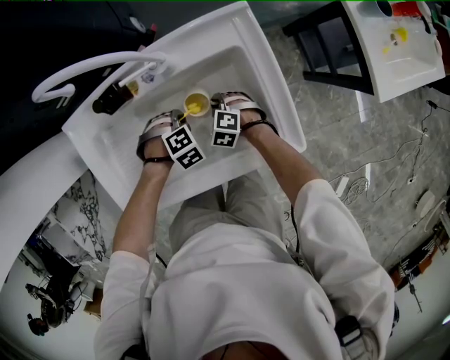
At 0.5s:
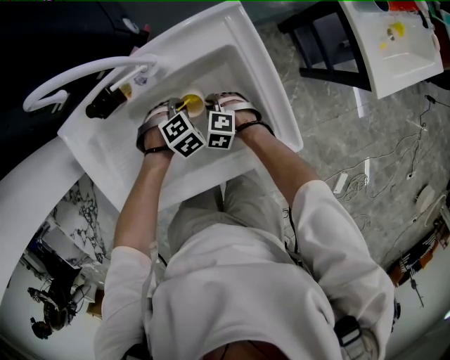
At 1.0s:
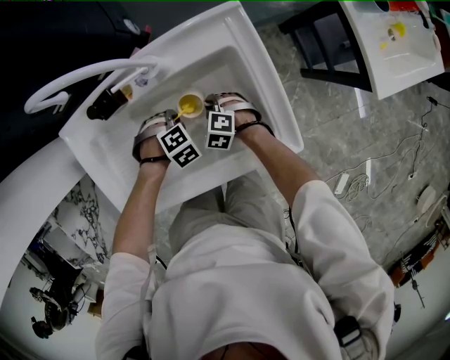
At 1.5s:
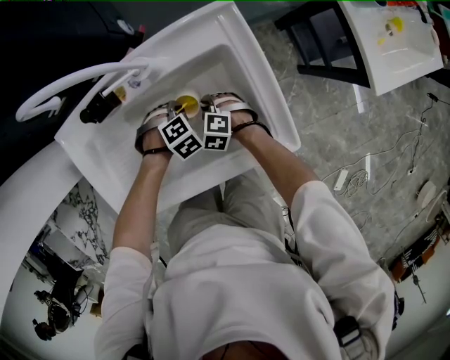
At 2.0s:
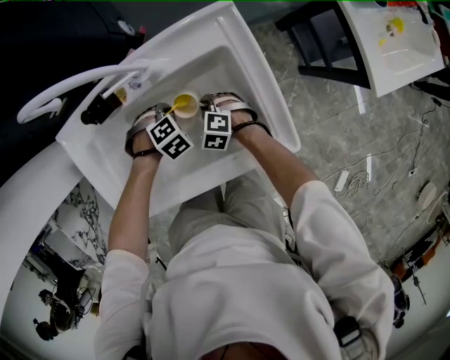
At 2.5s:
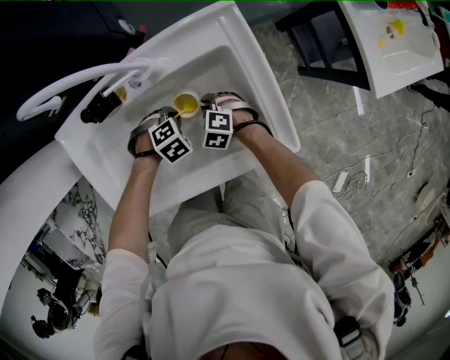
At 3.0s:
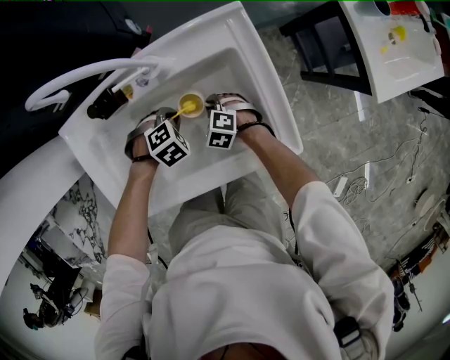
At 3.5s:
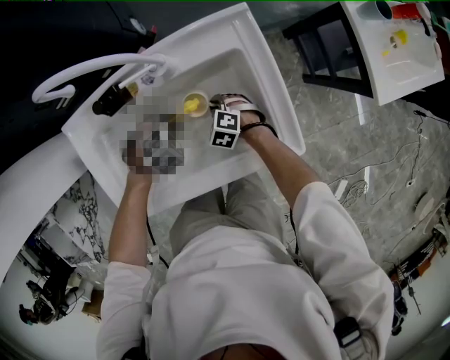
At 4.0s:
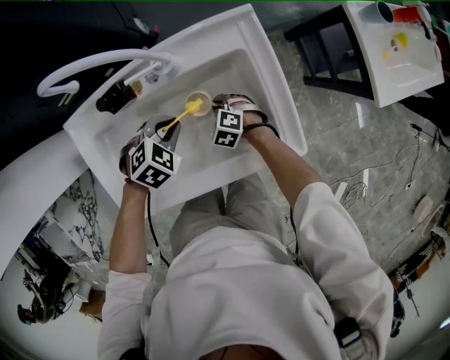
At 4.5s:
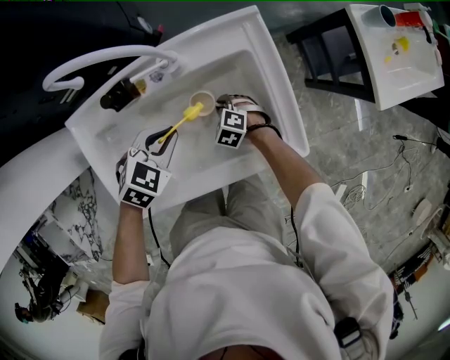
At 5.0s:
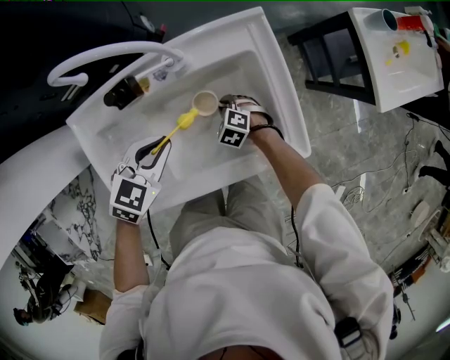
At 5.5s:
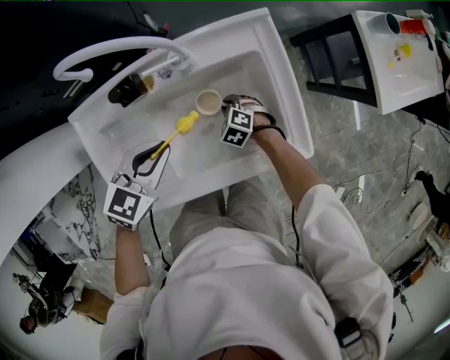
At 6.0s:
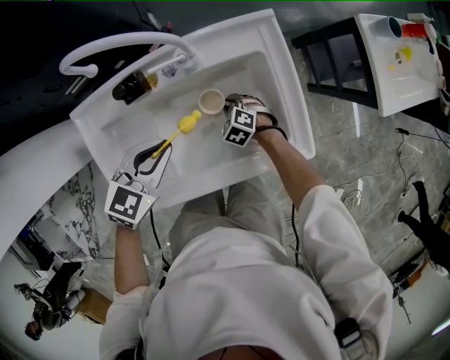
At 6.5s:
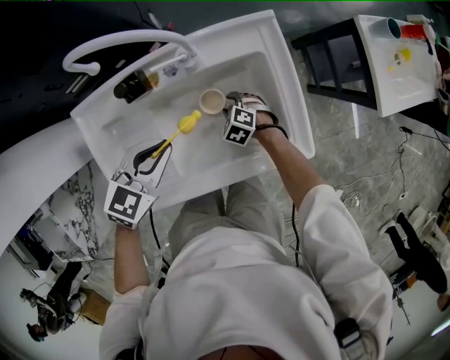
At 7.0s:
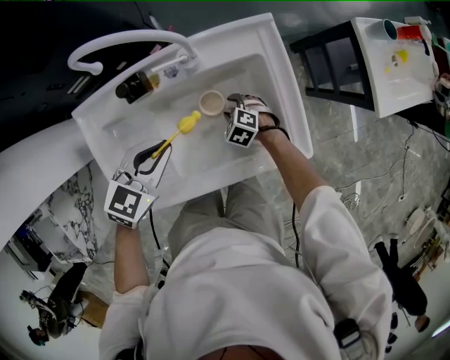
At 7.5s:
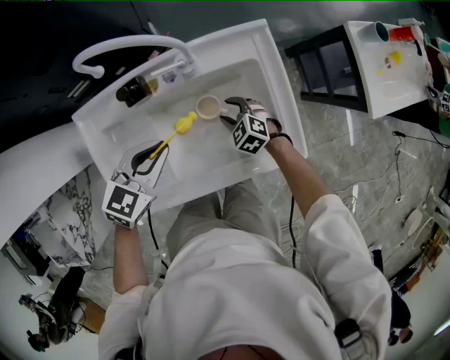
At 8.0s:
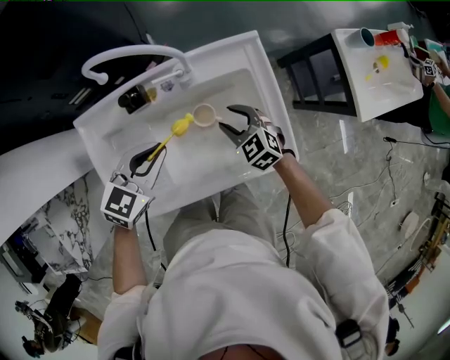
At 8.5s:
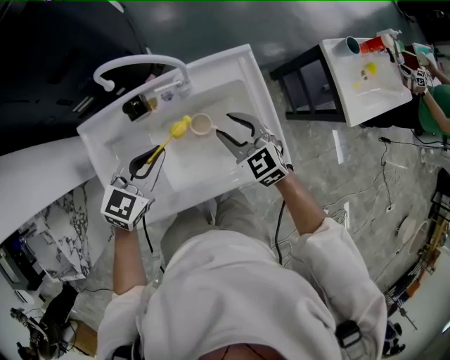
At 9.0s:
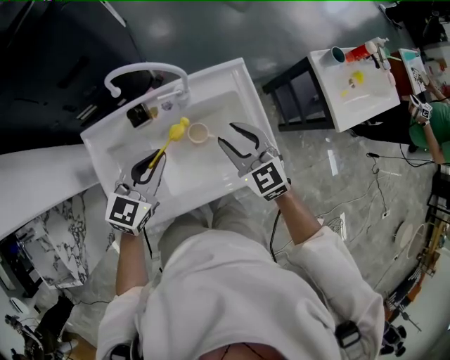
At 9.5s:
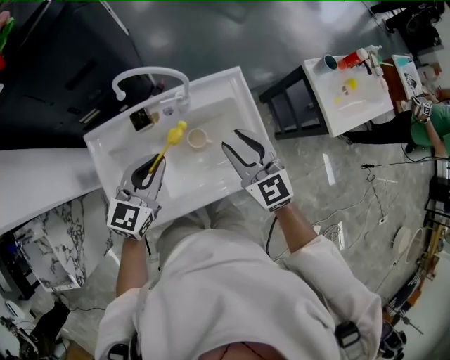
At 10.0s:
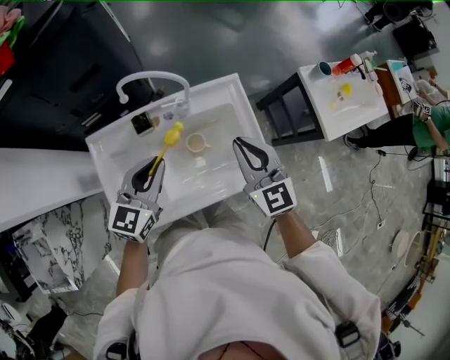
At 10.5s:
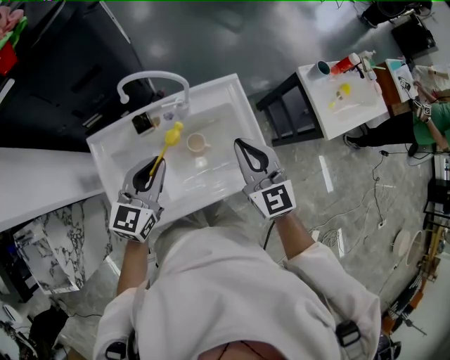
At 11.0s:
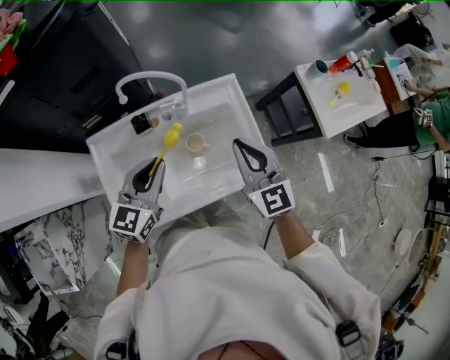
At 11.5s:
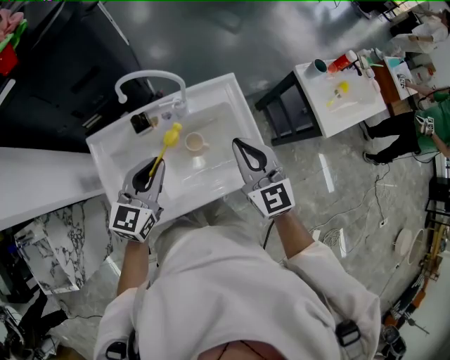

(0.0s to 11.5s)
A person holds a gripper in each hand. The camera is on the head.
0.0s - 2.0s: The grippers make only small movements.
2.0s - 4.0s: The left gripper heads upward, covering approximately 10 cm, and changes its angle by some 30 degrees.
4.0s - 6.0s: The left gripper moves upward and to the left, some 10 cm, and swivels approximately 30 degrees.
6.0s - 7.5s: The right gripper is displaced upward by approximately 10 cm, and opens.
7.5s - 9.5s: The left gripper travels upward by approximately 15 cm, and changes its angle by approximately 20 degrees, while the right gripper travels upward by approximately 35 cm, and tilts its fingers some 40 degrees upward.
9.5s - 11.5s: The right gripper travels upward by approximately 5 cm, and closes its fingers.

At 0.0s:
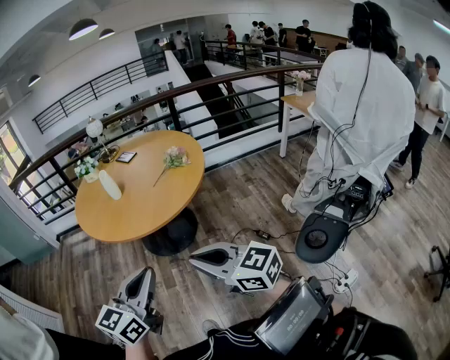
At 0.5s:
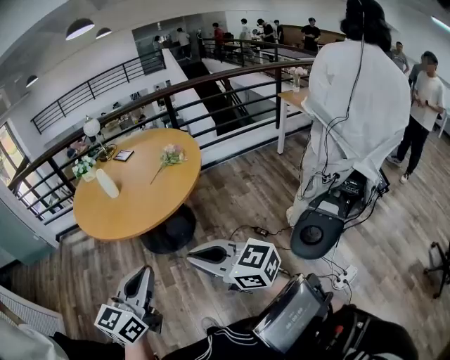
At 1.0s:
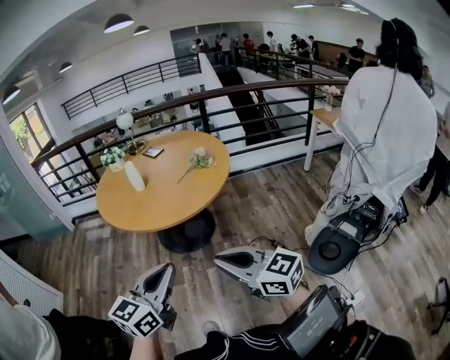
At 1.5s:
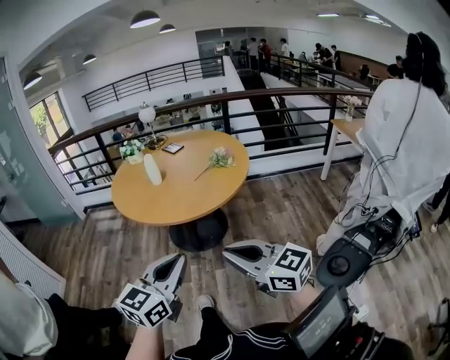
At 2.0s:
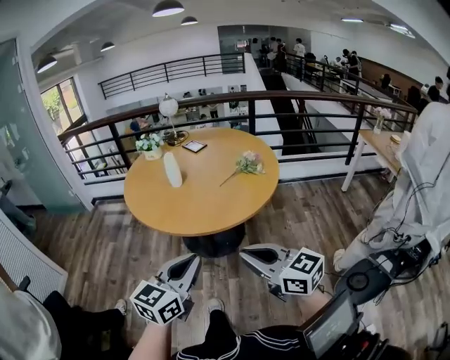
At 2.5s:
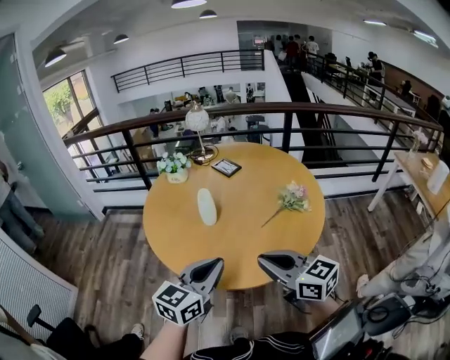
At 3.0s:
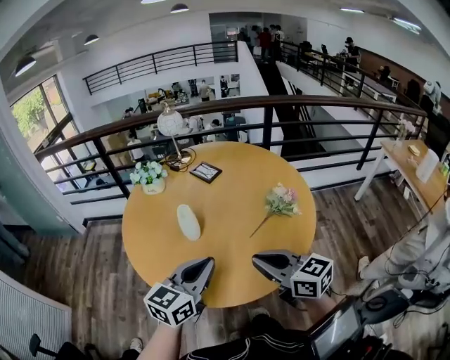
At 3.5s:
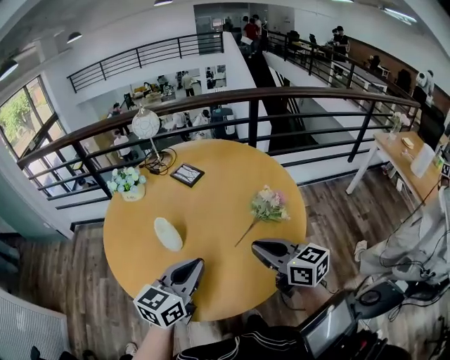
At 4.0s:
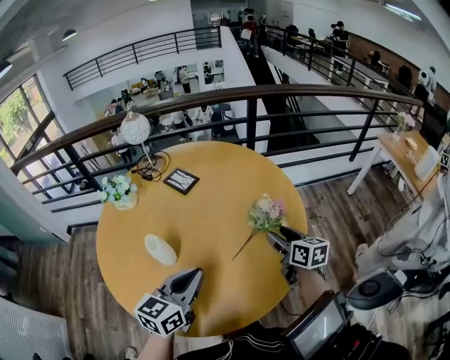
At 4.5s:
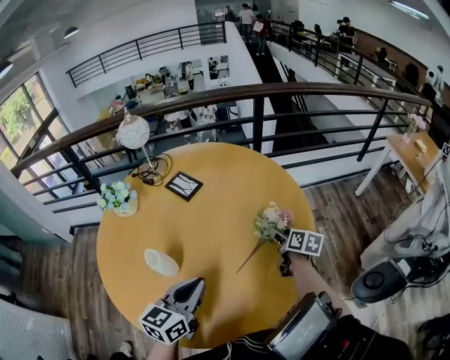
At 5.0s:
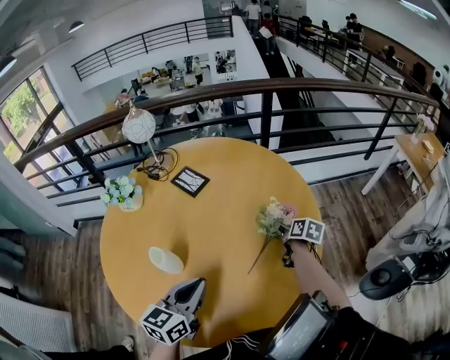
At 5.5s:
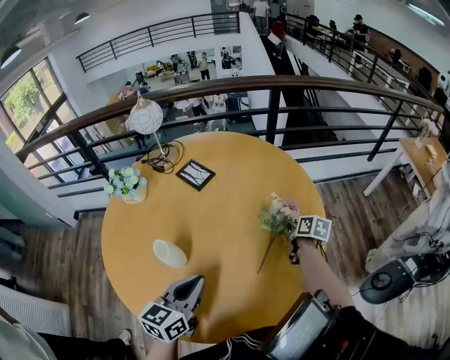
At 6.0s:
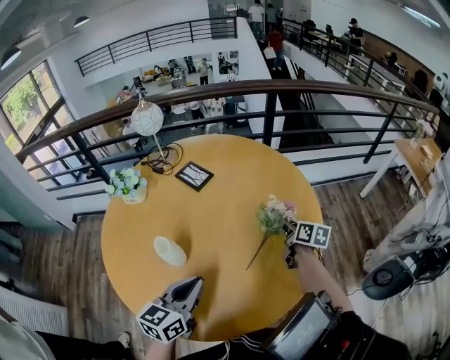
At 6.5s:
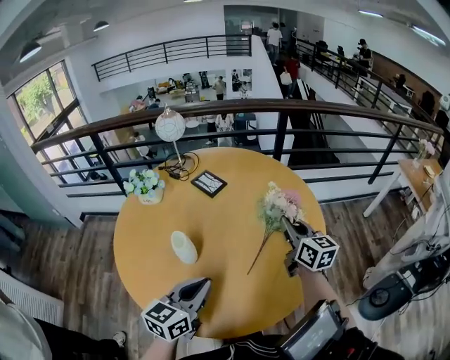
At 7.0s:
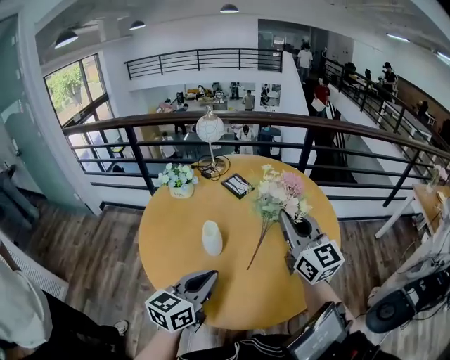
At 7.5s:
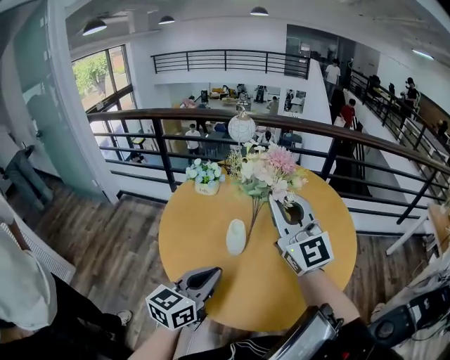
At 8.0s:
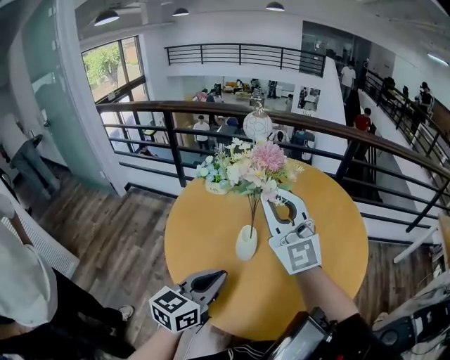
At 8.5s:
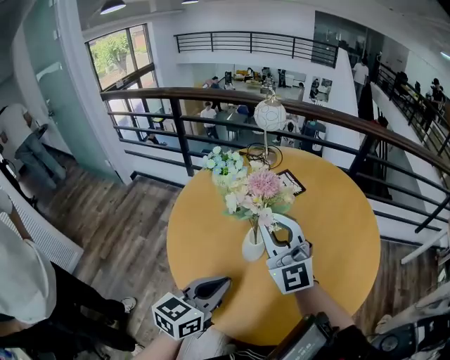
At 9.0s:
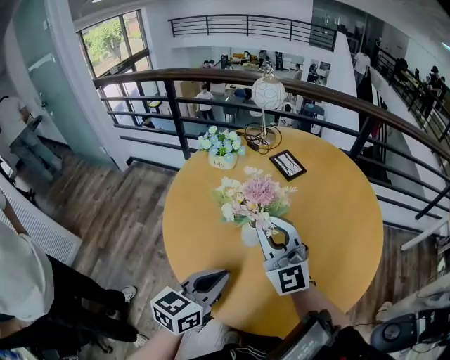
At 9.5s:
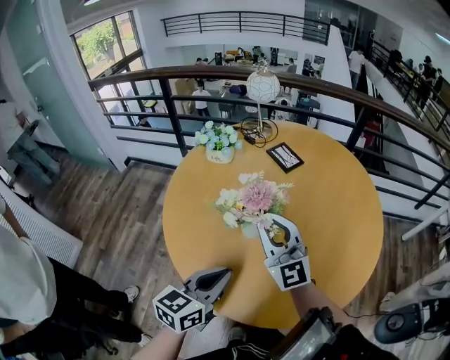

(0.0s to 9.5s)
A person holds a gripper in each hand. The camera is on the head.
0.0s - 2.0s: The two grippers go approximately 10 cm forward.
2.0s - 4.0s: Both grippers move forward, roughly 40 cm. The right gripper rotates roughly 50 degrees, and opens.
4.0s - 5.5s: The right gripper heads downward and forward, covering some 15 cm, swivels roughly 30 degrees, and closes its fingers.
5.5s - 7.5s: The right gripper moves upward and to the left, roughly 50 cm, and points its fingers approximately 60 degrees further upward; the left gripper travels to the left, upward and backward by approximately 15 cm.
7.5s - 9.5s: The left gripper moves downward, about 5 cm. Meanwhile the right gripper heads downward and to the left, covering approximately 15 cm.

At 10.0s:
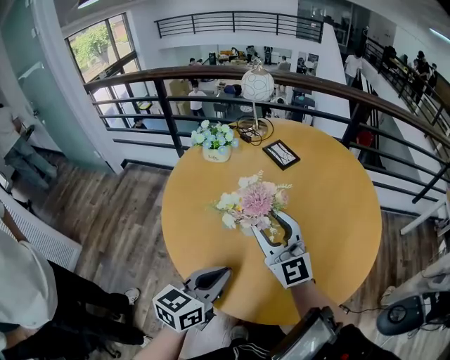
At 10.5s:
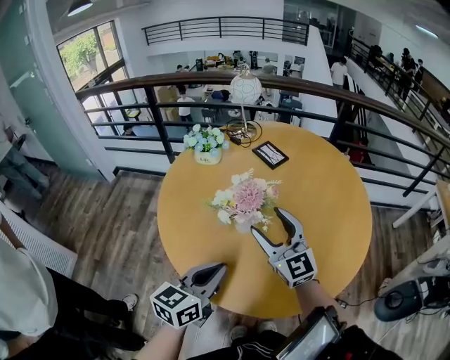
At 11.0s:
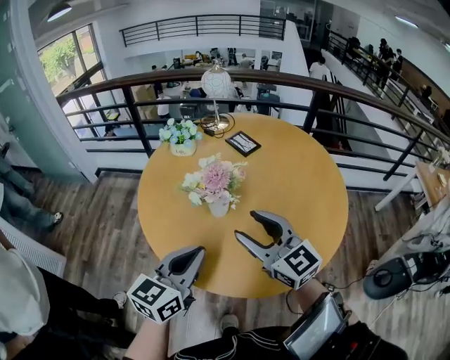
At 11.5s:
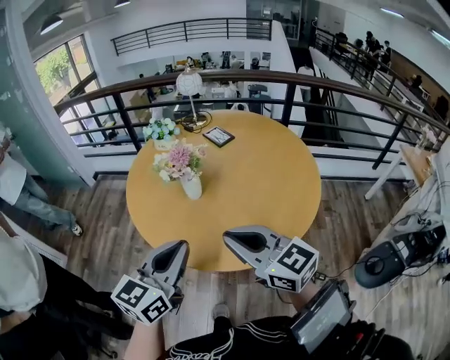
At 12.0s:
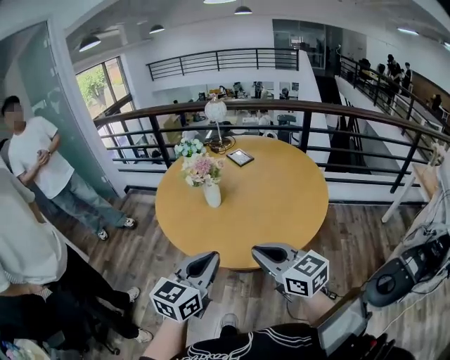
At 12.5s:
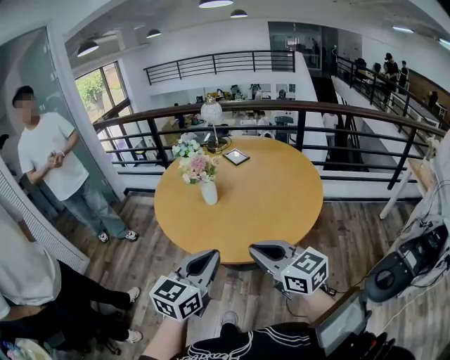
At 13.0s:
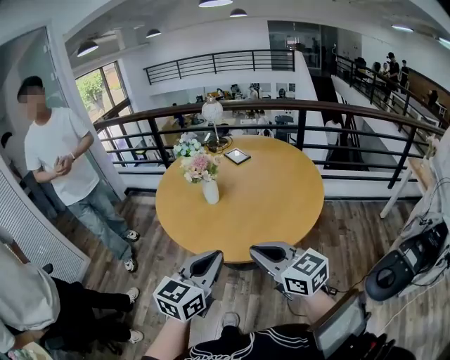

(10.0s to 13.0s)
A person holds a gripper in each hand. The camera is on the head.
10.0s - 11.5s: The right gripper is displaced backward by some 20 cm, changes its angle by approximately 40 degrees, and closes. The left gripper moves upward and backward, some 15 cm.
11.5s - 13.0s: The left gripper goes about 10 cm backward and to the right; the right gripper is displaced backward by roughly 10 cm.

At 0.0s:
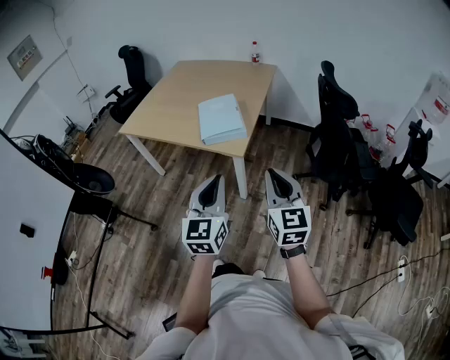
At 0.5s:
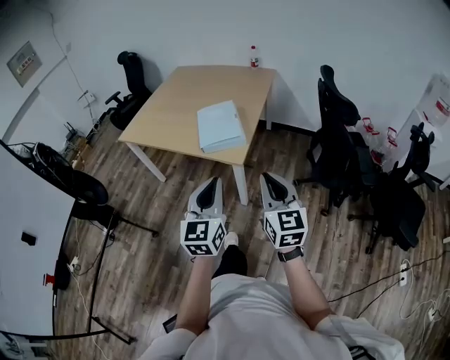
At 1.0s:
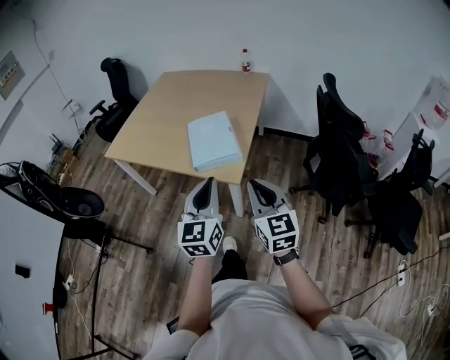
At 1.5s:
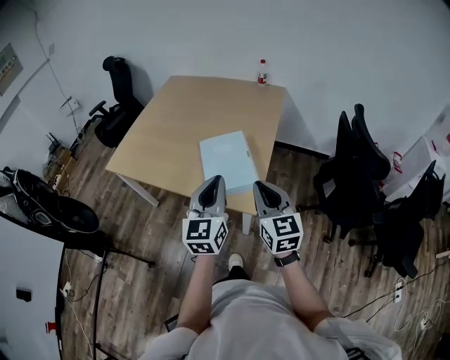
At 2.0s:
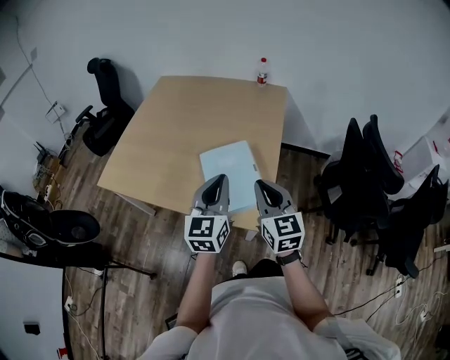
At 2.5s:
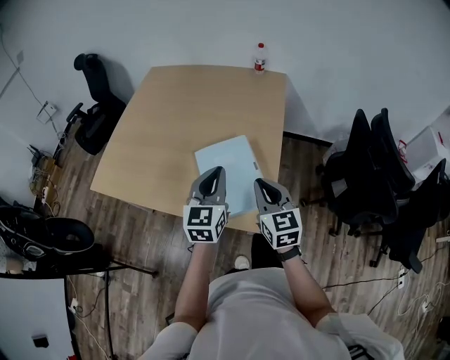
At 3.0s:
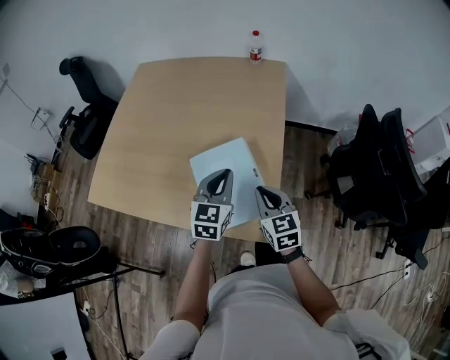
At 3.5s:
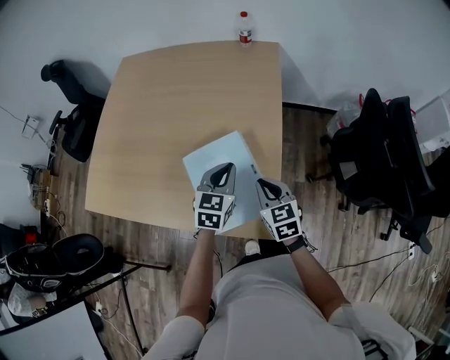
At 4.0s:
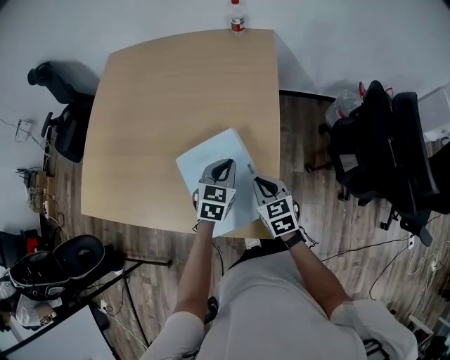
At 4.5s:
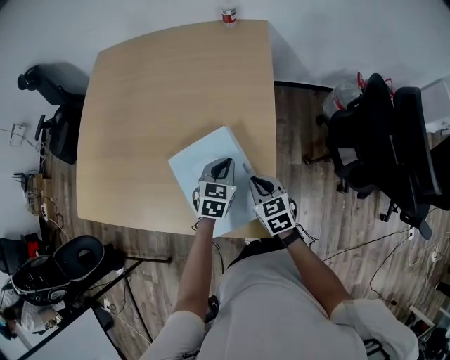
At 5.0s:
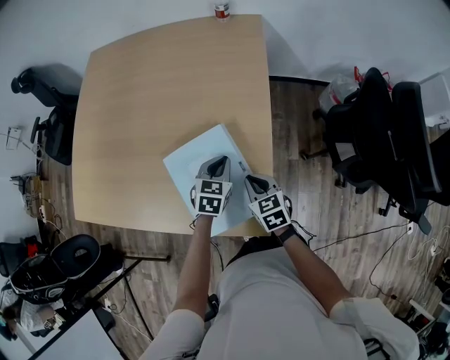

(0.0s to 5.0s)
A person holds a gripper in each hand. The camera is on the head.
0.0s - 2.5s: The two grippers travel together, forward, roughly 50 cm.
2.5s - 5.0s: The two grippers go some 25 cm downward and forward. The right gripper swivels approximately 30 degrees; the left gripper points its fingers about 30 degrees further downward.
